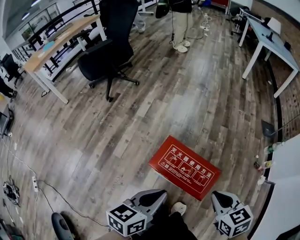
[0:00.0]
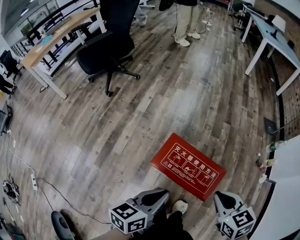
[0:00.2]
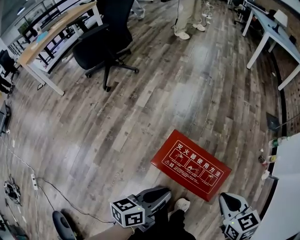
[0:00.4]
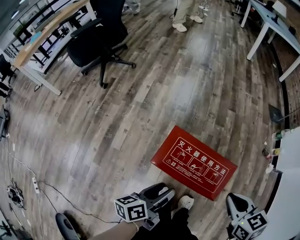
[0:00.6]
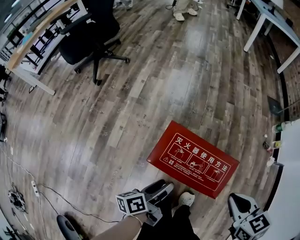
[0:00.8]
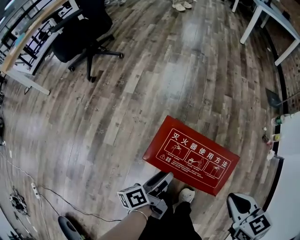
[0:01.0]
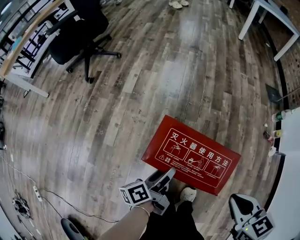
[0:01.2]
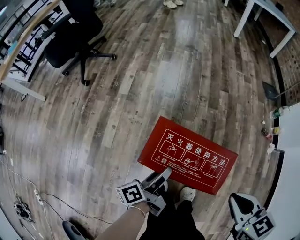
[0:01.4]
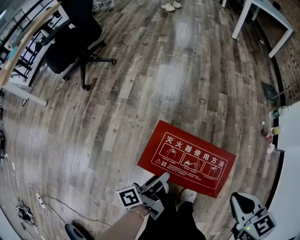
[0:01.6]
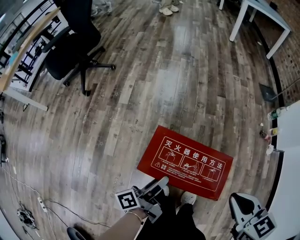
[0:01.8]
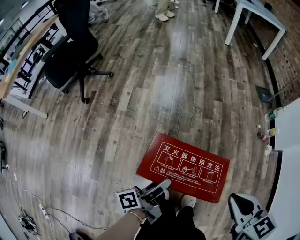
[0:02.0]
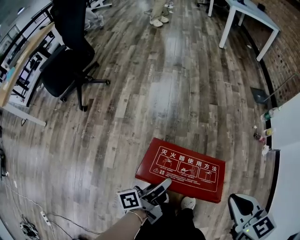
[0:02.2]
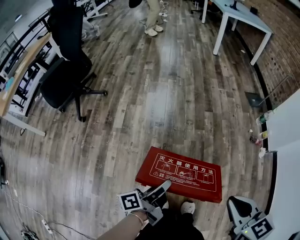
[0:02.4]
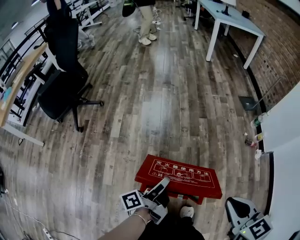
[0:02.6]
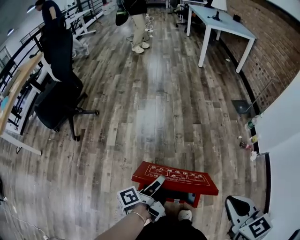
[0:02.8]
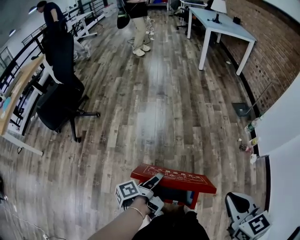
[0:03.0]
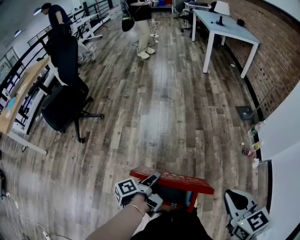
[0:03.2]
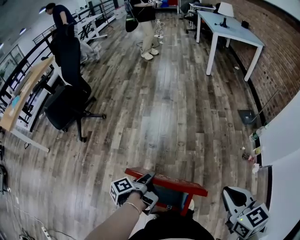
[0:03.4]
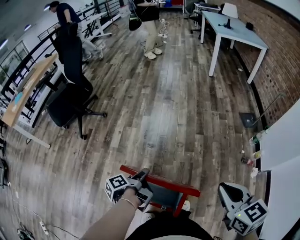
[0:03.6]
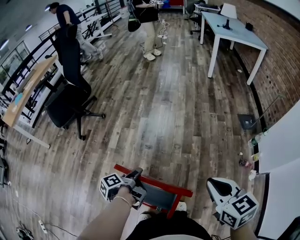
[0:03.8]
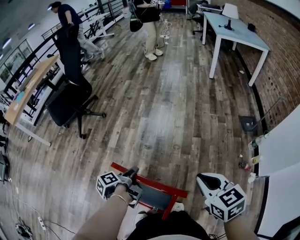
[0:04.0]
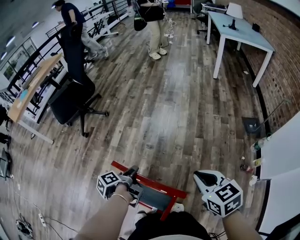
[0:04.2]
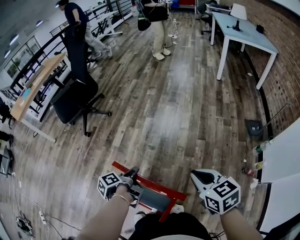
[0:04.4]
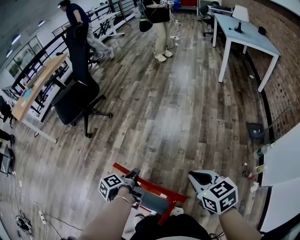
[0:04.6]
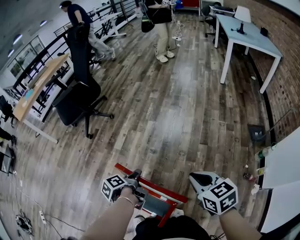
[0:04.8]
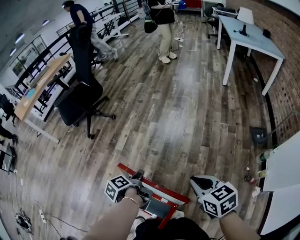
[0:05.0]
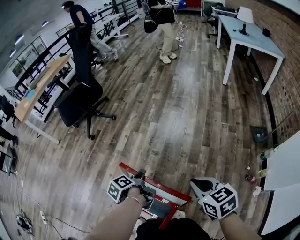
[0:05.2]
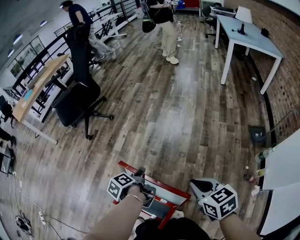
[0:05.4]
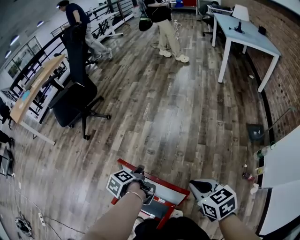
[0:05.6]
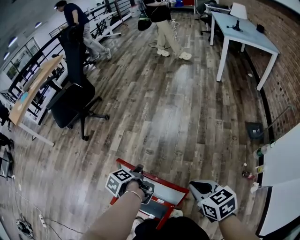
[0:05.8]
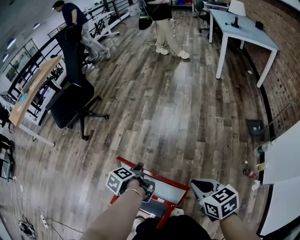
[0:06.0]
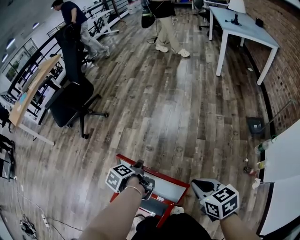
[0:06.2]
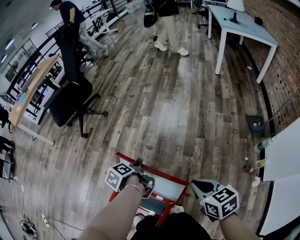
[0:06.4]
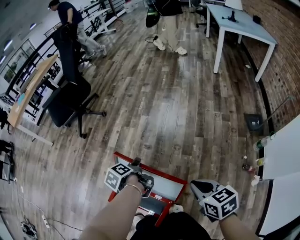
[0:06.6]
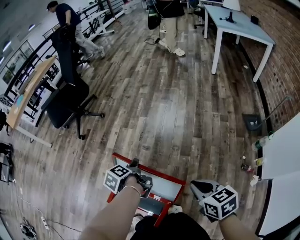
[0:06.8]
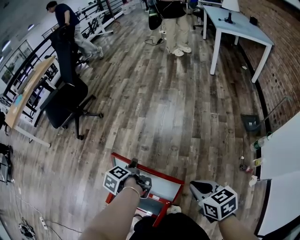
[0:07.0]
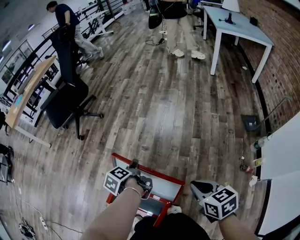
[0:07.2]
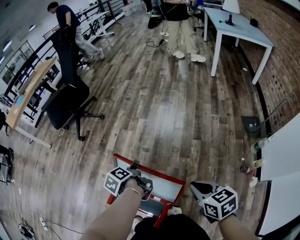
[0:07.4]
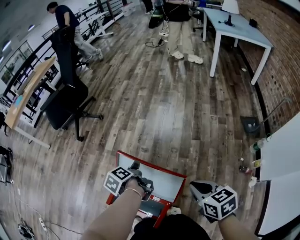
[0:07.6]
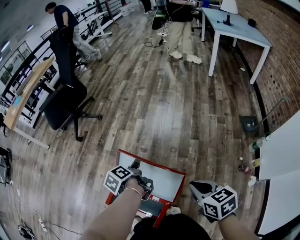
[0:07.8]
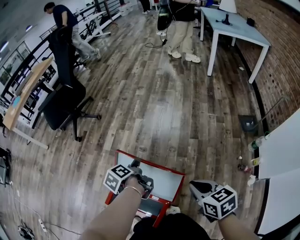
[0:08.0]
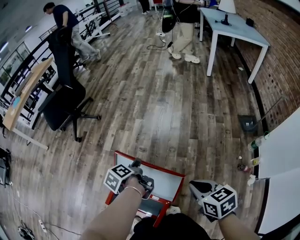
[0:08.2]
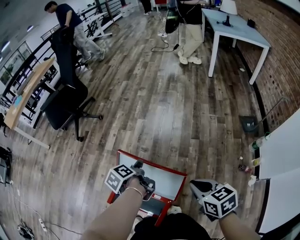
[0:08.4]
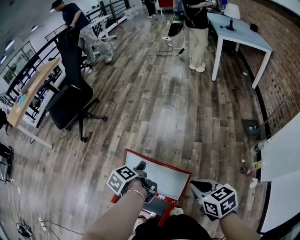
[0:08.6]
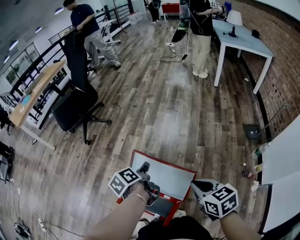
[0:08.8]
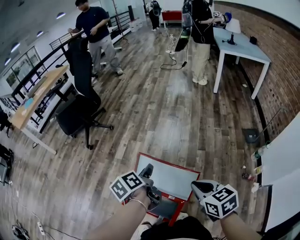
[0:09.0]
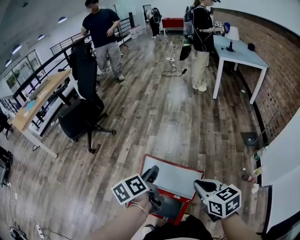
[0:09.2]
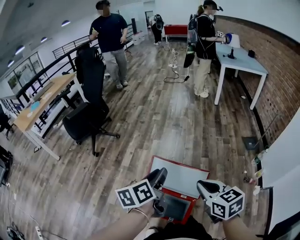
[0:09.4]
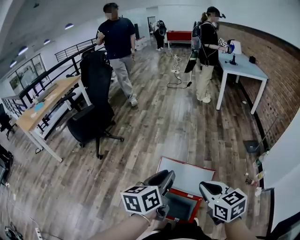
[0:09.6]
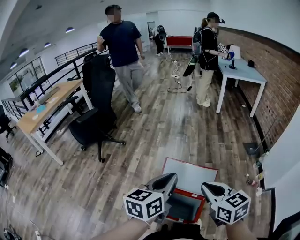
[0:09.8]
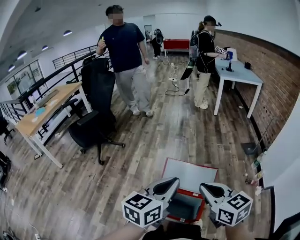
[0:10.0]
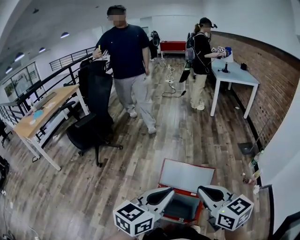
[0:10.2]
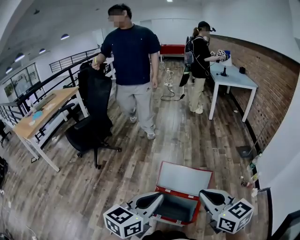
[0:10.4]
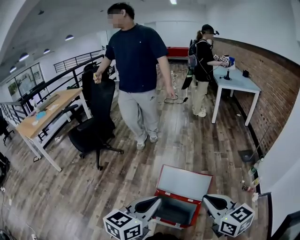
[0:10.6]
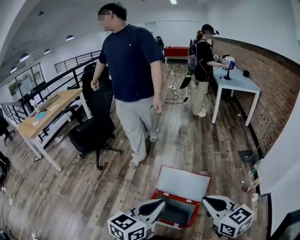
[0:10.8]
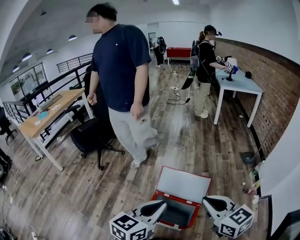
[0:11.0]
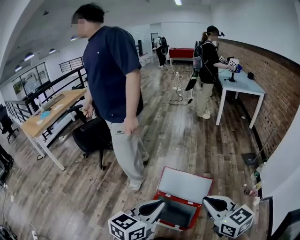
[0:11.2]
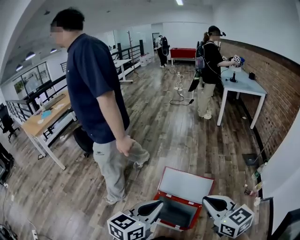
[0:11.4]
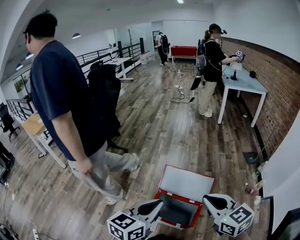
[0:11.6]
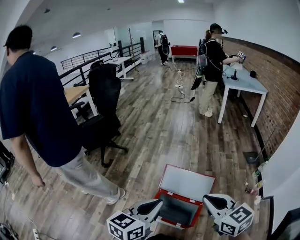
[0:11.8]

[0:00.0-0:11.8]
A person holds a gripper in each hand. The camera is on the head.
0:00.0 to 0:01.4: The left gripper is displaced downward by some 25 cm, rolls counterclockwise, seen from behind, by roughly 50 degrees, and opens; the right gripper shifts some 5 cm downward.
0:01.4 to 0:03.0: The left gripper heads upward and forward, covering some 20 cm, and closes. Meanwhile the right gripper heads upward, covering roughly 15 cm, and swivels roughly 20 degrees.
0:03.0 to 0:04.4: The left gripper shifts by about 5 cm, and swivels about 30 degrees; the right gripper ends up some 20 cm from where it was, and swivels roughly 30 degrees.
0:04.4 to 0:06.0: The right gripper heads downward, covering roughly 5 cm. The left gripper heads to the right, covering about 5 cm.
0:06.0 to 0:07.4: The grippers stay close to where they were, moving slightly.
0:07.4 to 0:08.8: The left gripper is displaced upward by some 5 cm, while the right gripper heads to the left, covering roughly 5 cm.
0:08.8 to 0:10.4: The right gripper moves about 35 cm, and turns by roughly 20 degrees, while the left gripper ends up some 35 cm from where it was, twists some 60 degrees clockwise, seen from behind, and closes its fingers.
0:10.4 to 0:11.8: The grippers stay close to where they were, moving slightly.

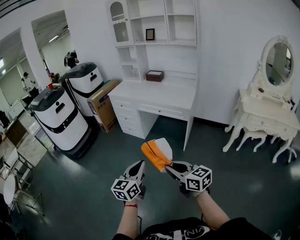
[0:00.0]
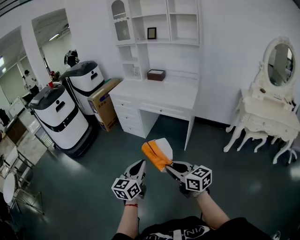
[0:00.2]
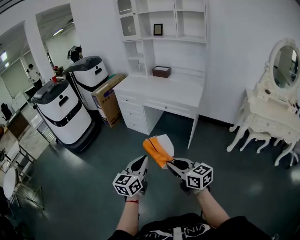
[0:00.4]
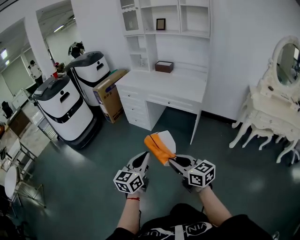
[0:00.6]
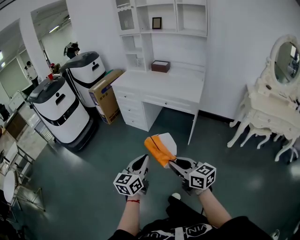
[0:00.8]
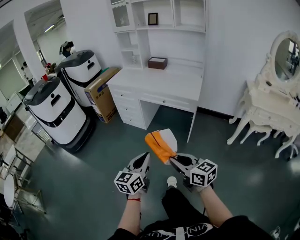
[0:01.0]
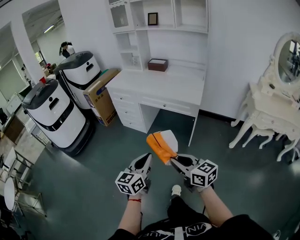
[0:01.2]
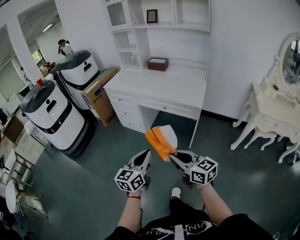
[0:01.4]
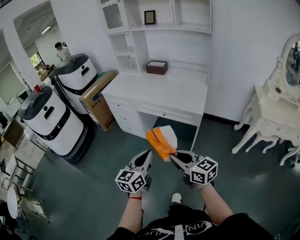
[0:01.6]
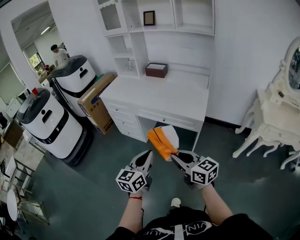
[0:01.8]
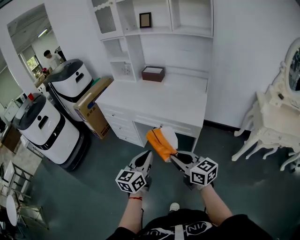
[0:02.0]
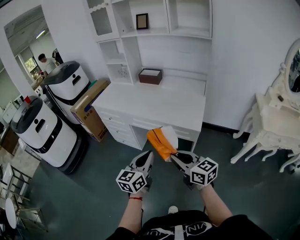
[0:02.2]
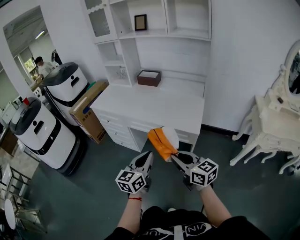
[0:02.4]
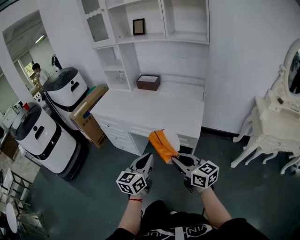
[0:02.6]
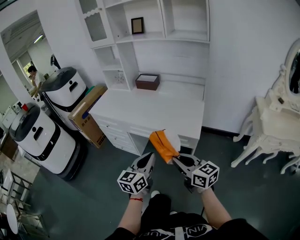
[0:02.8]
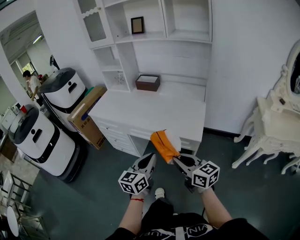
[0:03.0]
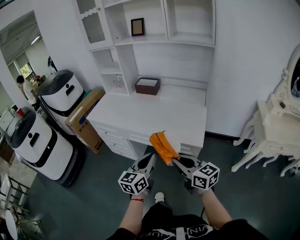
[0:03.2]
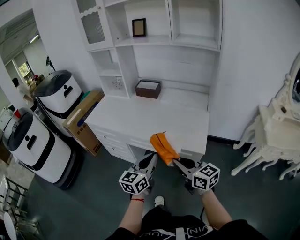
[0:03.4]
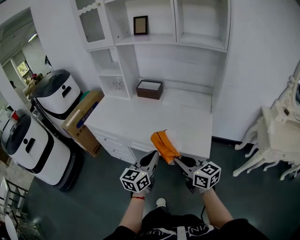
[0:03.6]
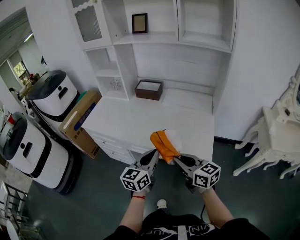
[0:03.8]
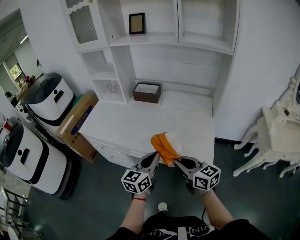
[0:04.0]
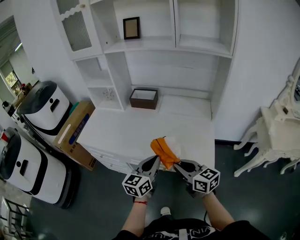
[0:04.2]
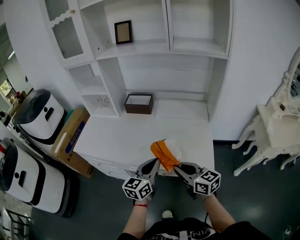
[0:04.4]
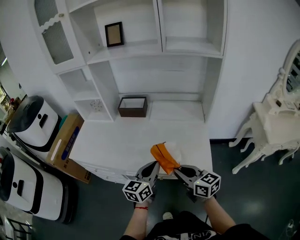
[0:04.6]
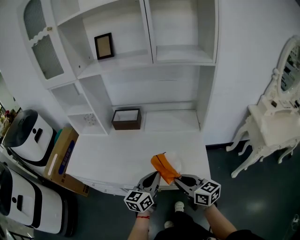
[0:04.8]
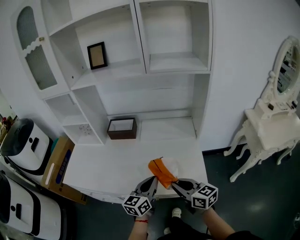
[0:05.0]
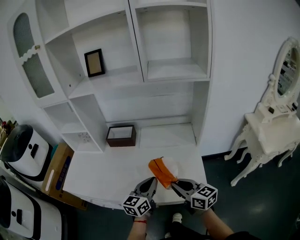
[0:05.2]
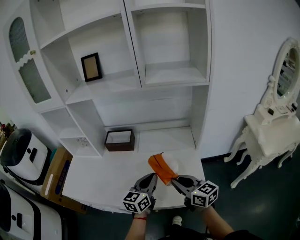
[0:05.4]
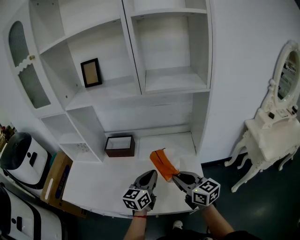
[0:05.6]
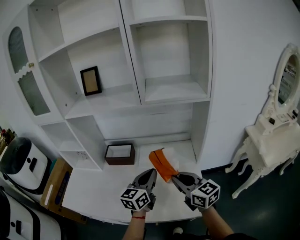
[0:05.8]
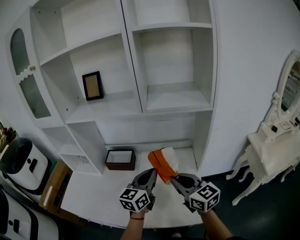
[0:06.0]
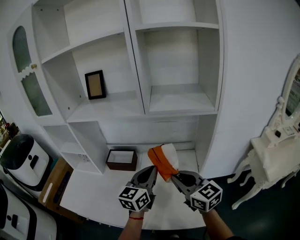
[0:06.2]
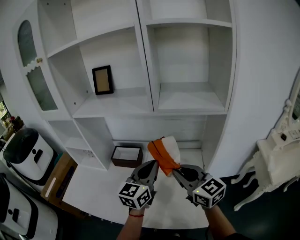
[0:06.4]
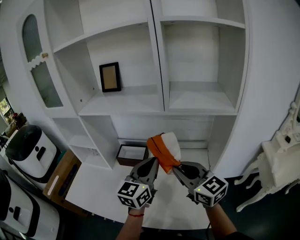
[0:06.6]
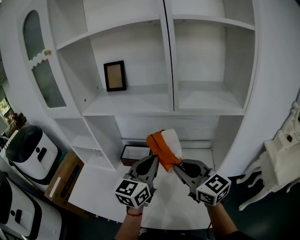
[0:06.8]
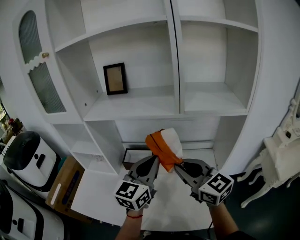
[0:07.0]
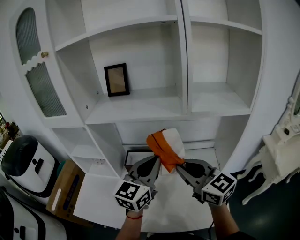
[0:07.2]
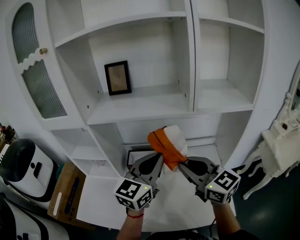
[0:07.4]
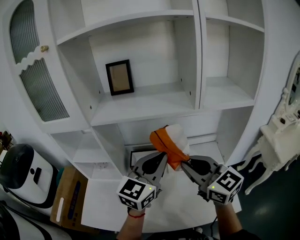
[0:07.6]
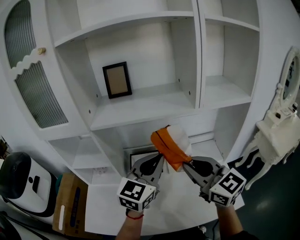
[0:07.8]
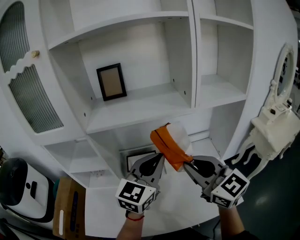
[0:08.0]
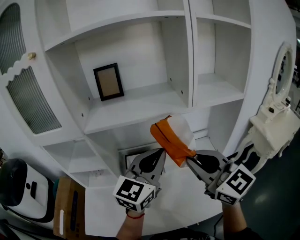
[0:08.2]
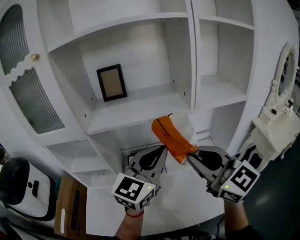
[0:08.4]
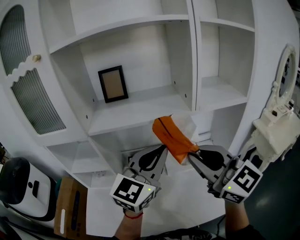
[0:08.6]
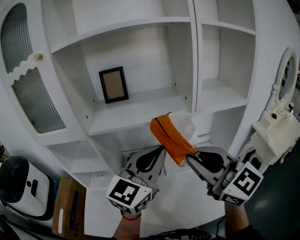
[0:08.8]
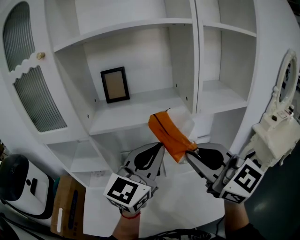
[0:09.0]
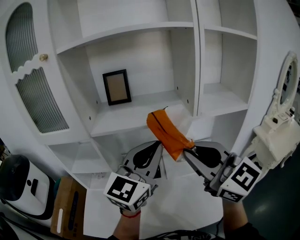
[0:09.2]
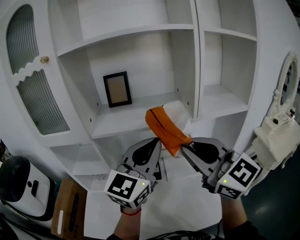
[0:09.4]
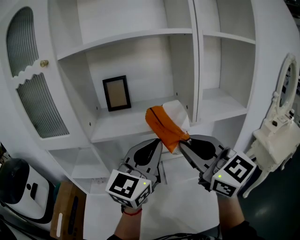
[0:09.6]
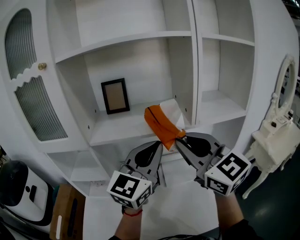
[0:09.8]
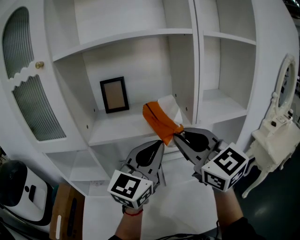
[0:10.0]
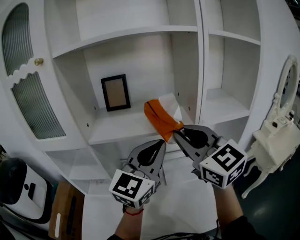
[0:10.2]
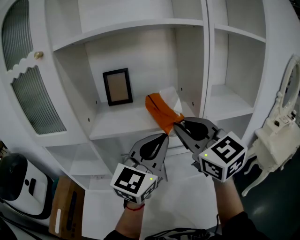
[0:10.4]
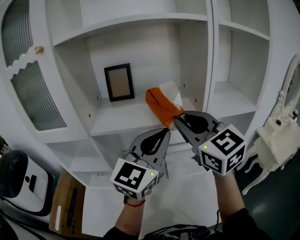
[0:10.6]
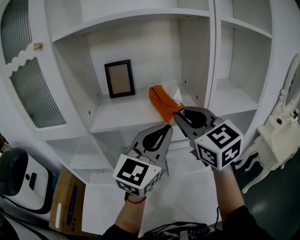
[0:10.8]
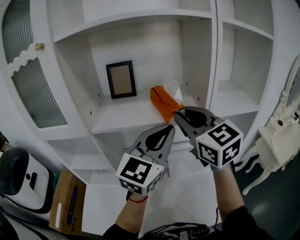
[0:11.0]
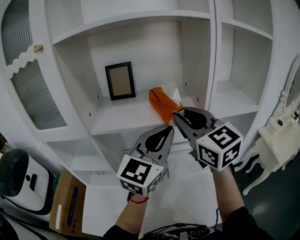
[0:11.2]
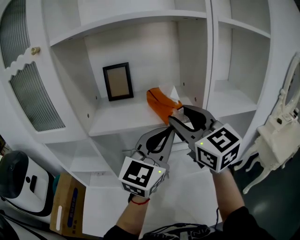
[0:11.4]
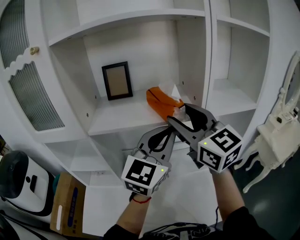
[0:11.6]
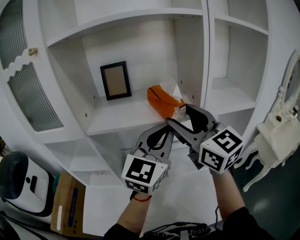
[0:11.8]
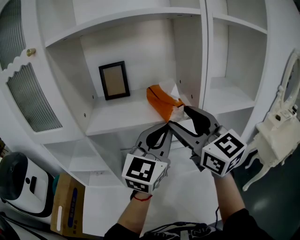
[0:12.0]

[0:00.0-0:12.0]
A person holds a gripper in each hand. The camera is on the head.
0:00.0 to 0:01.6: Both grippers travel together forward, about 25 cm.
0:01.6 to 0:03.0: Both grippers travel together forward and to the right, approximately 20 cm.
0:03.0 to 0:04.4: The grippers both shift forward by roughly 25 cm.
0:04.4 to 0:06.0: The grippers both shift forward, upward and to the right by some 25 cm.
0:06.0 to 0:07.6: The right gripper shifts roughly 20 cm to the left, upward and forward; the left gripper heads to the left and upward, covering approximately 20 cm, and swivels about 20 degrees.
0:07.6 to 0:09.0: Both grippers travel together upward, about 10 cm.
0:09.0 to 0:10.4: The right gripper is displaced forward by approximately 10 cm. Meanwhile the left gripper is displaced forward by roughly 5 cm.
0:10.4 to 0:12.0: The right gripper opens up.
